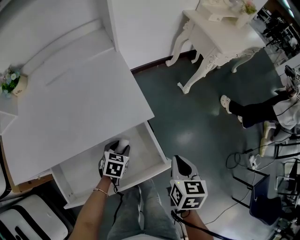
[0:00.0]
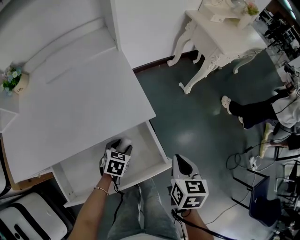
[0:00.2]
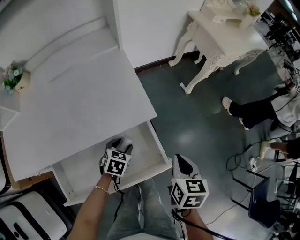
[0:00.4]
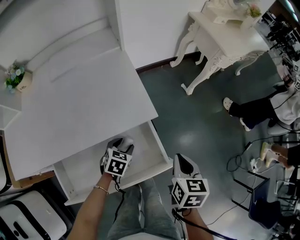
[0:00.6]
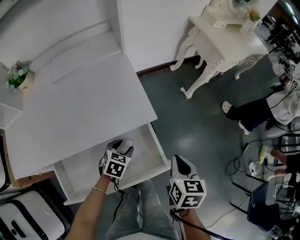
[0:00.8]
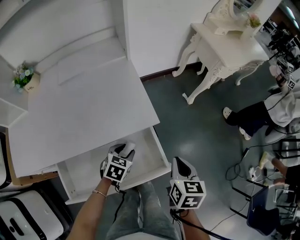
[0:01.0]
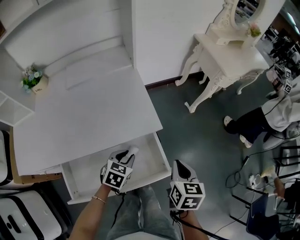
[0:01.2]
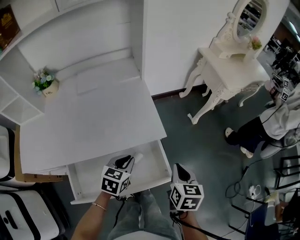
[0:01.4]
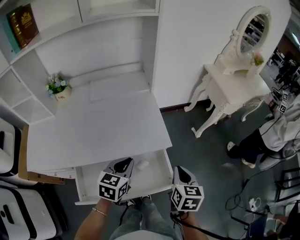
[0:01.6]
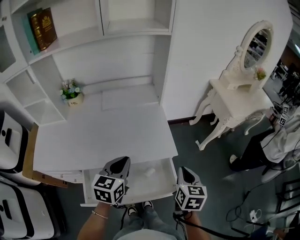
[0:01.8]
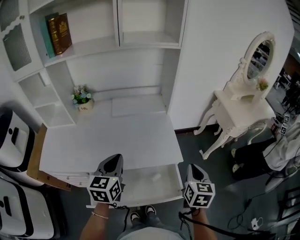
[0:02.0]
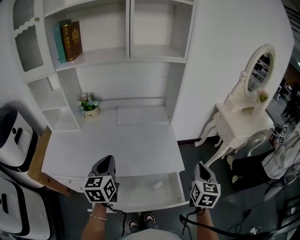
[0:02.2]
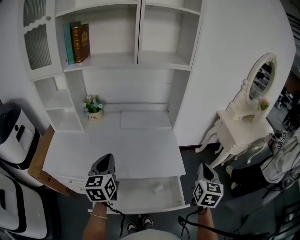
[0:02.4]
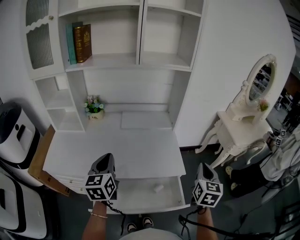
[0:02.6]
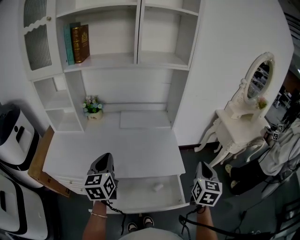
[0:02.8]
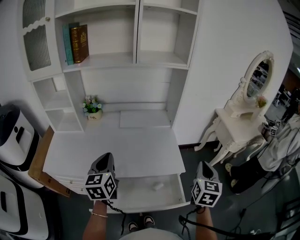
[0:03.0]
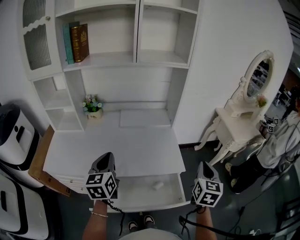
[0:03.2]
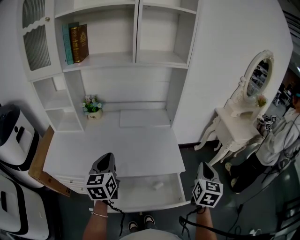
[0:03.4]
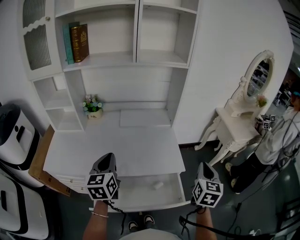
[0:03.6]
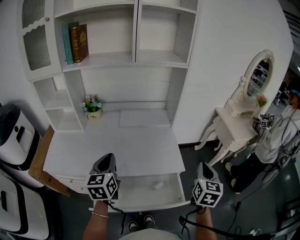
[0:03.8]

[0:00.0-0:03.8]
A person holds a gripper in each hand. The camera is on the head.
0:00.0 to 0:01.2: The left gripper travels upward by some 10 cm.
0:01.2 to 0:02.6: The left gripper is displaced upward and to the left by roughly 40 cm, tips its fingers upward by approximately 40 degrees, and closes. Meanwhile the right gripper is displaced upward by some 20 cm, and rotates roughly 30 degrees.
0:02.6 to 0:03.8: There are only small adjustments of the grippers.

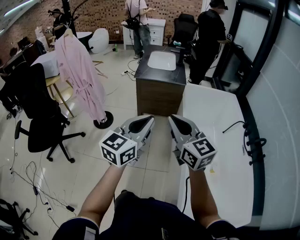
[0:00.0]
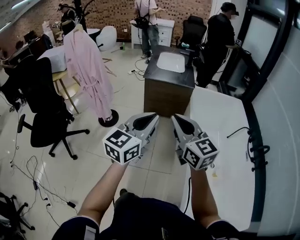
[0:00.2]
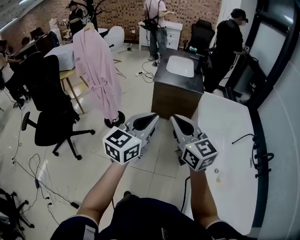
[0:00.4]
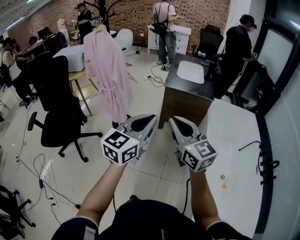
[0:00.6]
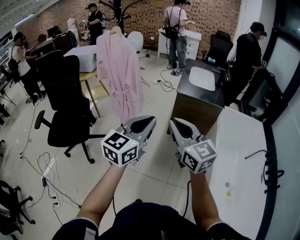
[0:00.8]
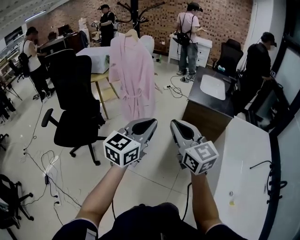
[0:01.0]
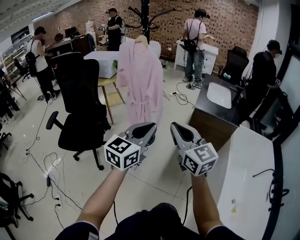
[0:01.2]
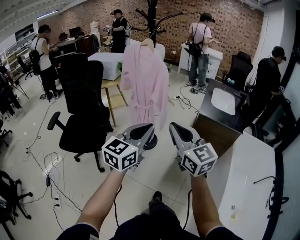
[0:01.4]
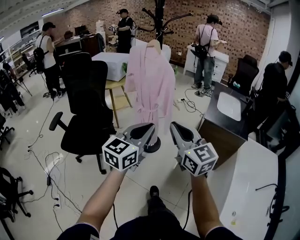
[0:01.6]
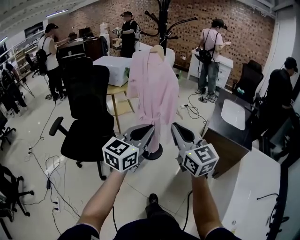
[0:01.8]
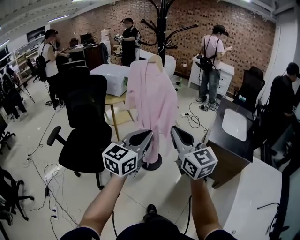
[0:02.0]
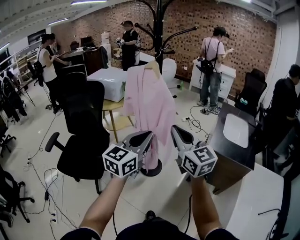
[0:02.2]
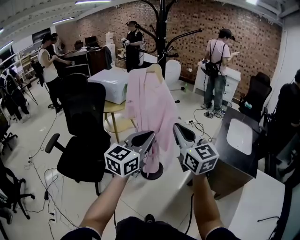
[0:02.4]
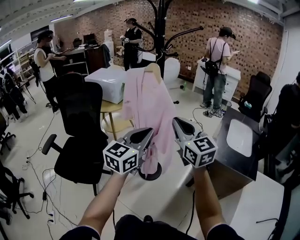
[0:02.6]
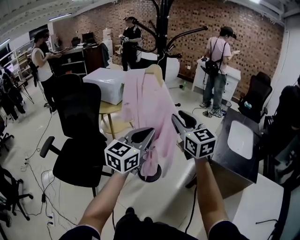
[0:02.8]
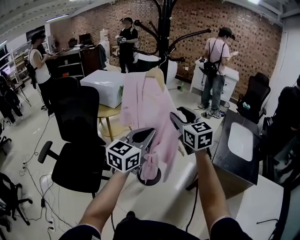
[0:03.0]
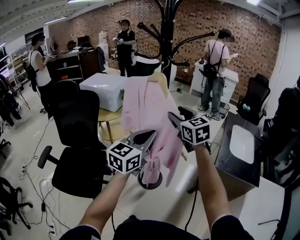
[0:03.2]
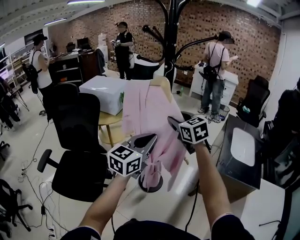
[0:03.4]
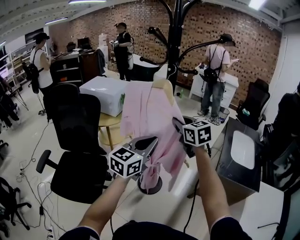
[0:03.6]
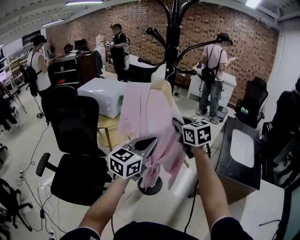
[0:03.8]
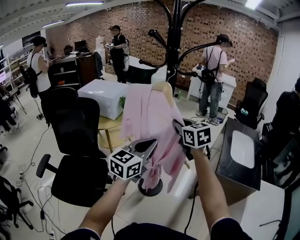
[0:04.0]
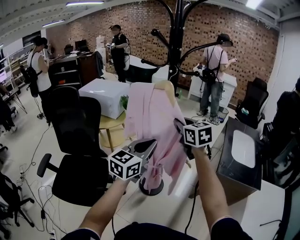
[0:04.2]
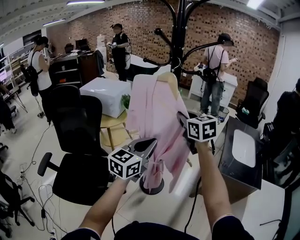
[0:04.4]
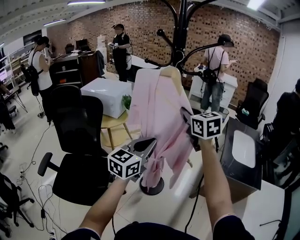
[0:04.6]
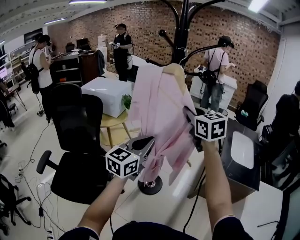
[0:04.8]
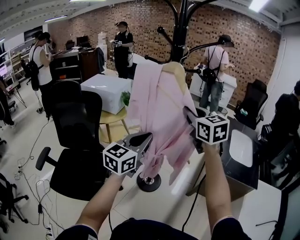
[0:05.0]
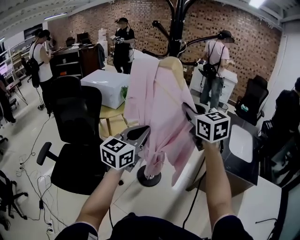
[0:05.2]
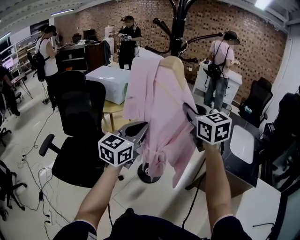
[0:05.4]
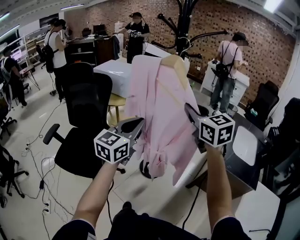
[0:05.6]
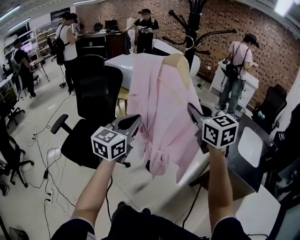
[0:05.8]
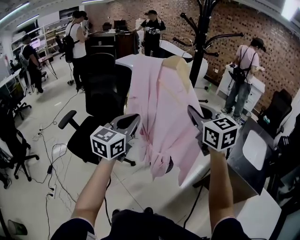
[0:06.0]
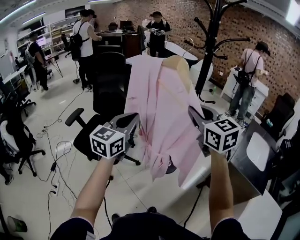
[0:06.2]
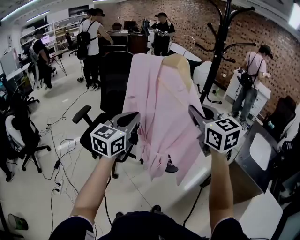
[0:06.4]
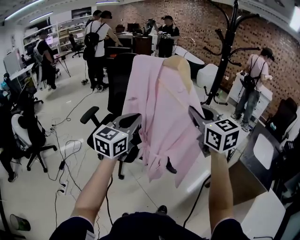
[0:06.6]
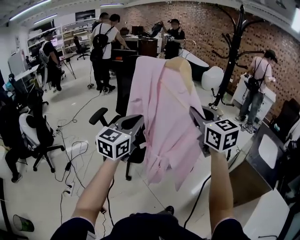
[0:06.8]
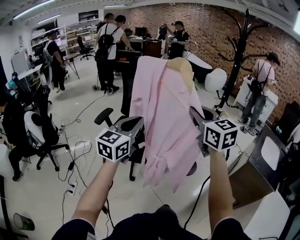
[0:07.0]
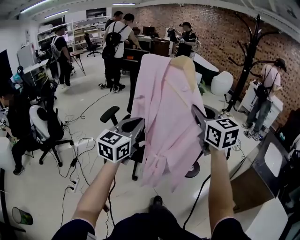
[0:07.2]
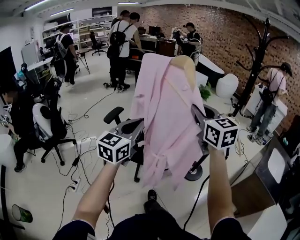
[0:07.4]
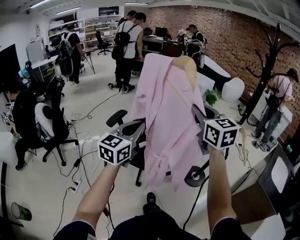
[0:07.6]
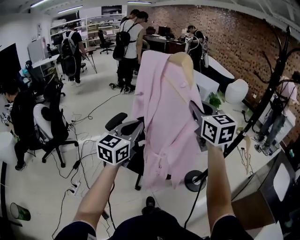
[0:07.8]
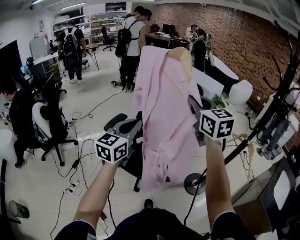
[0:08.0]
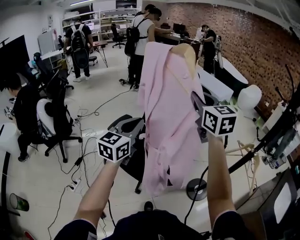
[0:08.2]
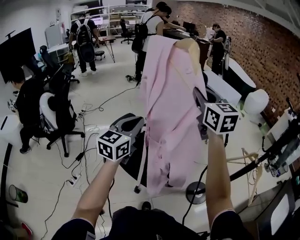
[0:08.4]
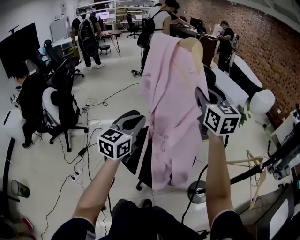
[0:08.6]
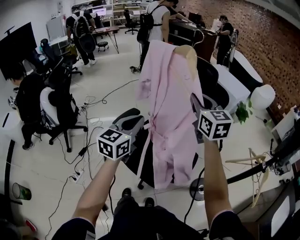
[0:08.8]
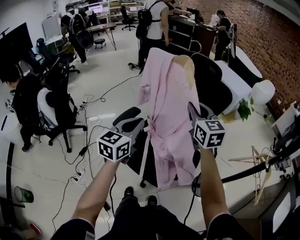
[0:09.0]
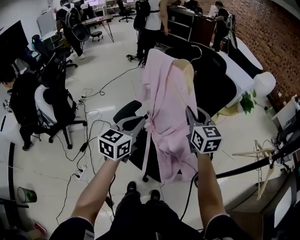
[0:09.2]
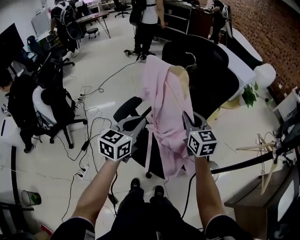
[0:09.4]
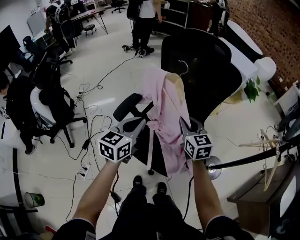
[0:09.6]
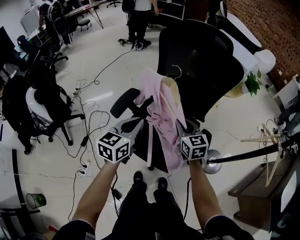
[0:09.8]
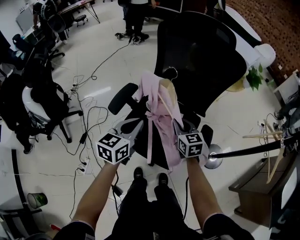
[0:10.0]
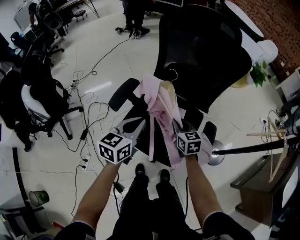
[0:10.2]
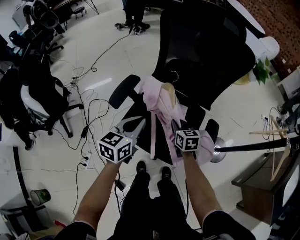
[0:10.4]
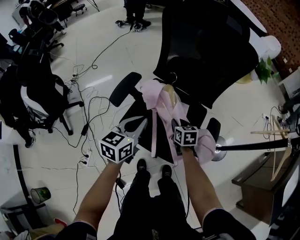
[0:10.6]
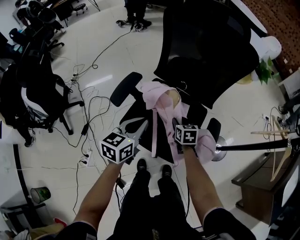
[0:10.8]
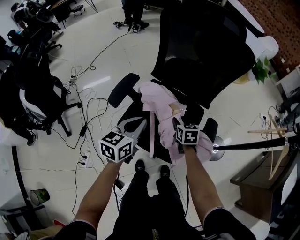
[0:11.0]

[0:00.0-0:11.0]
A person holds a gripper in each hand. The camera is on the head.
0:00.0 to 0:01.6: Both grippers are carried to the left and forward, roughly 40 cm. The left gripper swivels some 20 degrees; the right gripper changes its angle by about 20 degrees.
0:01.6 to 0:03.2: Both grippers travel together forward, some 40 cm. The right gripper opens its fingers.
0:03.2 to 0:04.8: The right gripper moves upward, roughly 5 cm, and closes. Meanwhile the left gripper goes roughly 5 cm to the left.
0:04.8 to 0:06.2: The two grippers go roughly 20 cm backward and to the left. The right gripper rotates approximately 20 degrees. Meanwhile the left gripper rotates some 30 degrees.
0:06.2 to 0:07.8: The grippers both shift to the left by roughly 30 cm.
0:07.8 to 0:09.4: The right gripper moves downward, forward and to the left, approximately 30 cm. The left gripper moves forward, downward and to the left, some 25 cm.
0:09.4 to 0:11.0: The left gripper moves downward, approximately 10 cm, while the right gripper is displaced downward by some 25 cm, points its fingers some 30 degrees further downward, and opens.

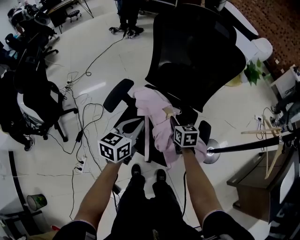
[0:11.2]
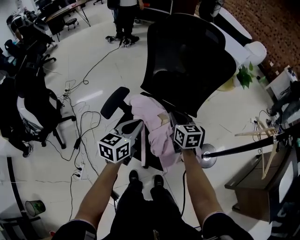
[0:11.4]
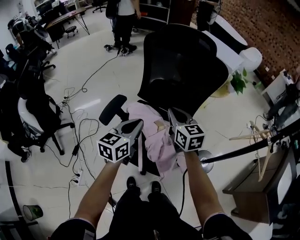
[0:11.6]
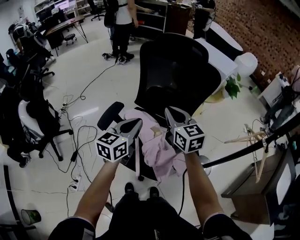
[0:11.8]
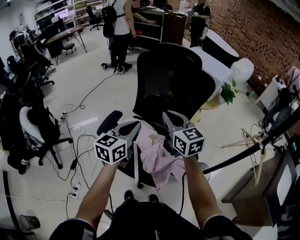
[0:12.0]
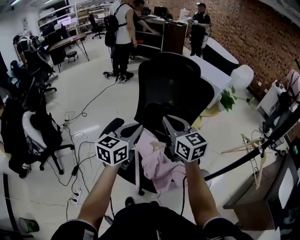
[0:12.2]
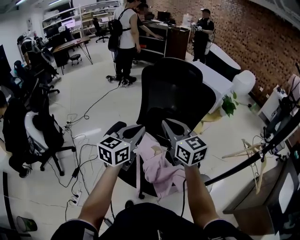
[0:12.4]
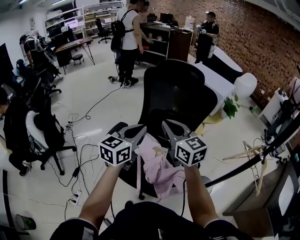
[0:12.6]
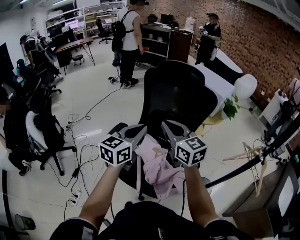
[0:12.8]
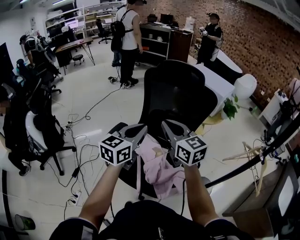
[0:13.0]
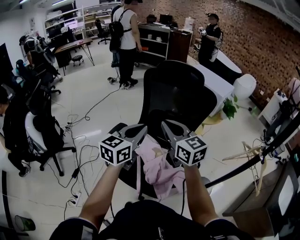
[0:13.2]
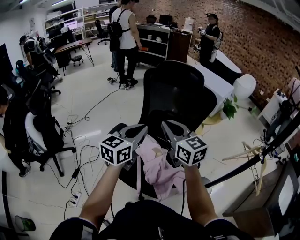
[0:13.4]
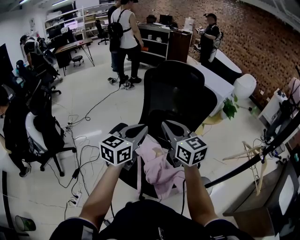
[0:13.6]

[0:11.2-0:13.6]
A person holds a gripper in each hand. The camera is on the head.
0:11.2 to 0:12.4: The left gripper shifts roughly 15 cm upward; the right gripper travels upward by some 30 cm, angles its fingers upward, by roughly 30 degrees, and closes.
0:12.4 to 0:13.6: Neither gripper changes place.

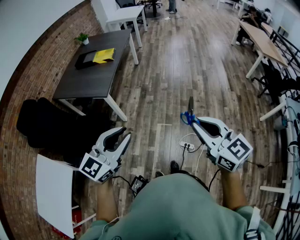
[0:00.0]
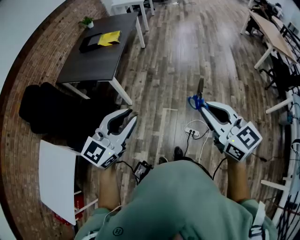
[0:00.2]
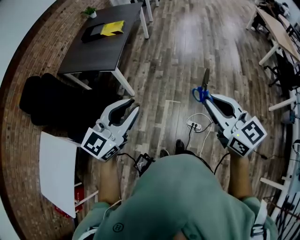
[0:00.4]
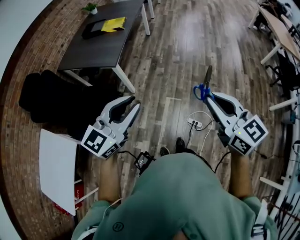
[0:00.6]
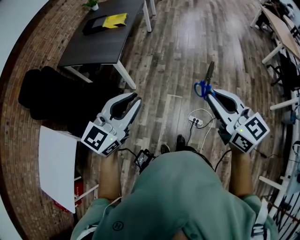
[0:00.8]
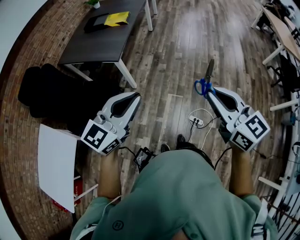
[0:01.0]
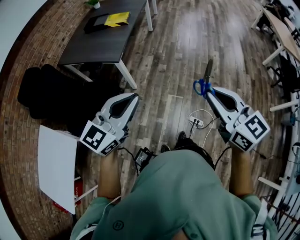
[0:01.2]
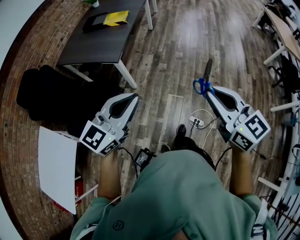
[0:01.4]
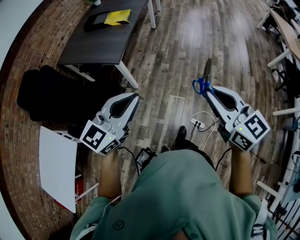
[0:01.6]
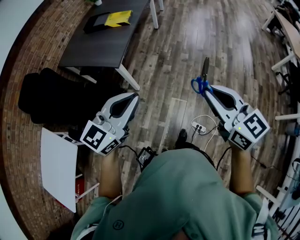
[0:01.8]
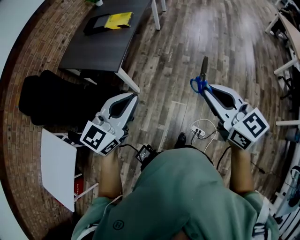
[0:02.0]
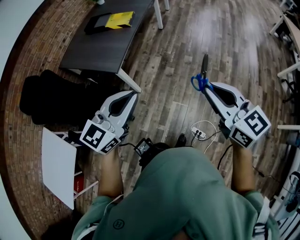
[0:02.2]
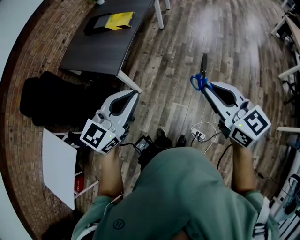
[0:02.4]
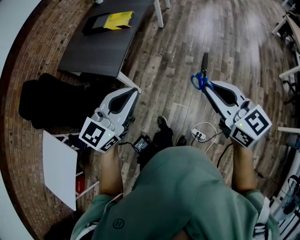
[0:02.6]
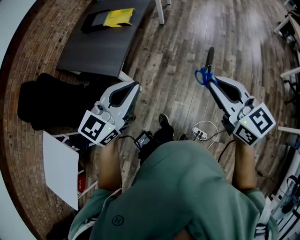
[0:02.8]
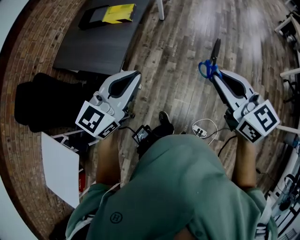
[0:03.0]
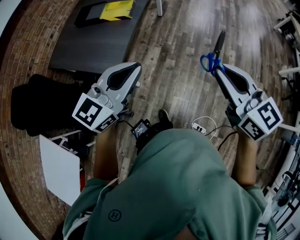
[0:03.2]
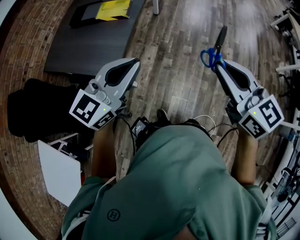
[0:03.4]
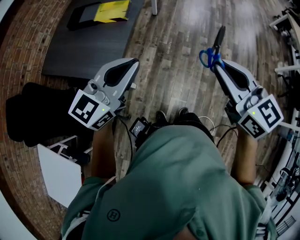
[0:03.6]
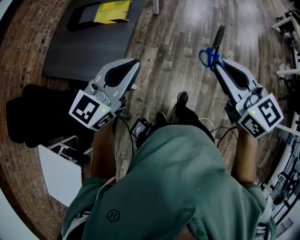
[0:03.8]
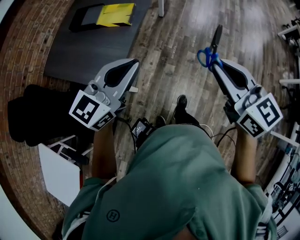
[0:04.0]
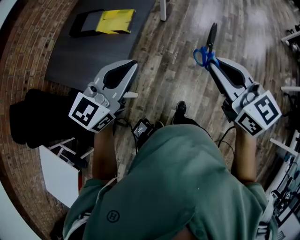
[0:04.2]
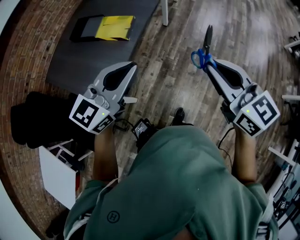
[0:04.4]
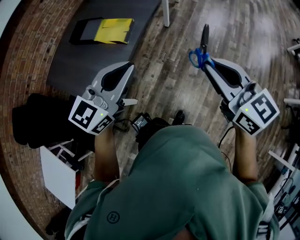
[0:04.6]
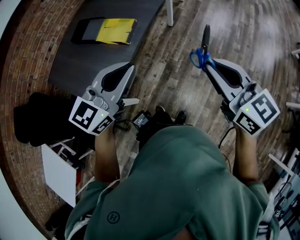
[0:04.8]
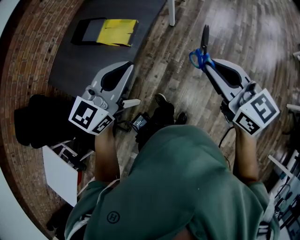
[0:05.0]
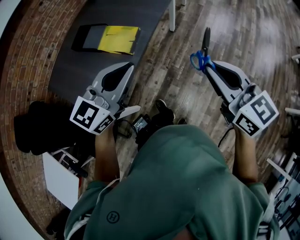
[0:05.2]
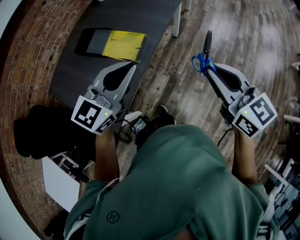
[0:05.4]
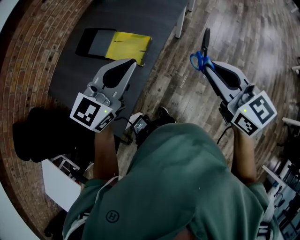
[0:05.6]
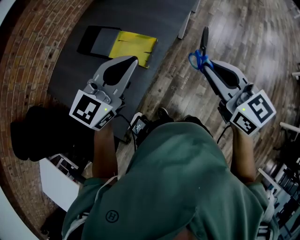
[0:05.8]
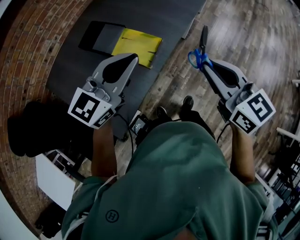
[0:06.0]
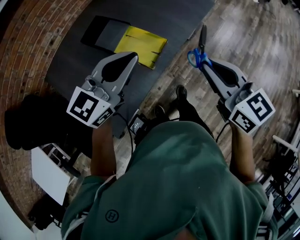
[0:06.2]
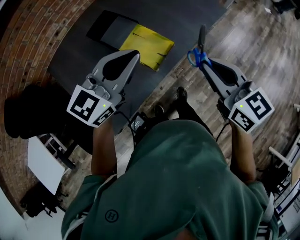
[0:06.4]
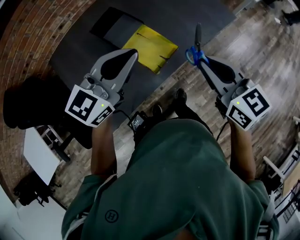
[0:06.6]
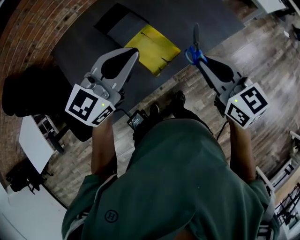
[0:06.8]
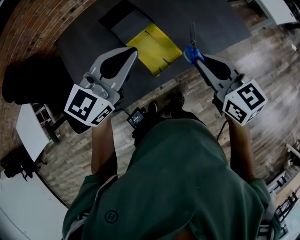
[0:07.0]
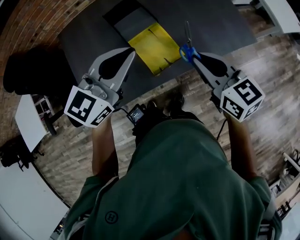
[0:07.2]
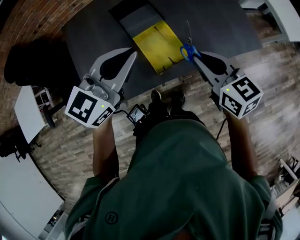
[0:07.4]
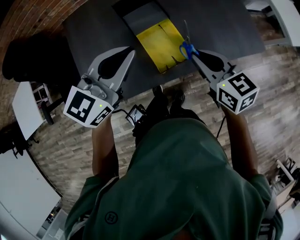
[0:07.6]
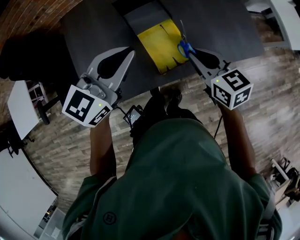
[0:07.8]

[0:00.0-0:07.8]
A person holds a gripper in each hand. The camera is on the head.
0:00.0 to 0:01.6: The grippers both shift forward by approximately 15 cm. The left gripper closes its fingers.
0:01.6 to 0:03.2: The two grippers go some 30 cm forward.
0:03.2 to 0:04.6: The grippers both shift forward by roughly 25 cm.
0:04.6 to 0:06.2: Both grippers travel together forward and to the left, some 30 cm.
0:06.2 to 0:07.8: The left gripper changes place by approximately 5 cm, and turns by about 30 degrees. The right gripper changes place by roughly 20 cm, and turns by roughly 40 degrees.
